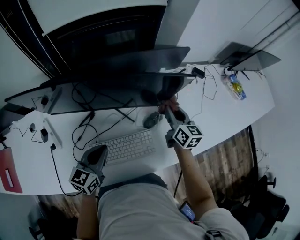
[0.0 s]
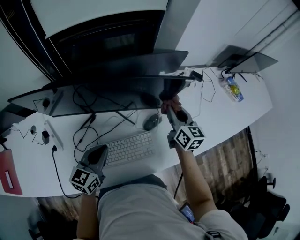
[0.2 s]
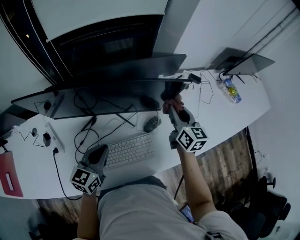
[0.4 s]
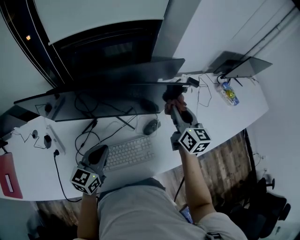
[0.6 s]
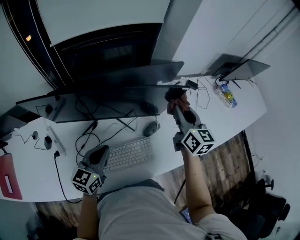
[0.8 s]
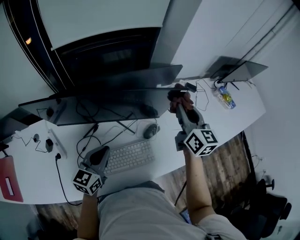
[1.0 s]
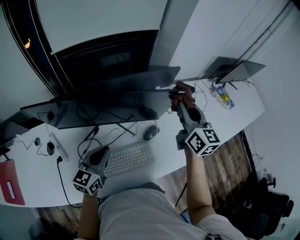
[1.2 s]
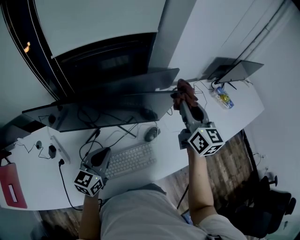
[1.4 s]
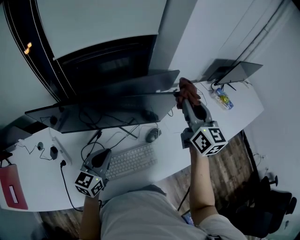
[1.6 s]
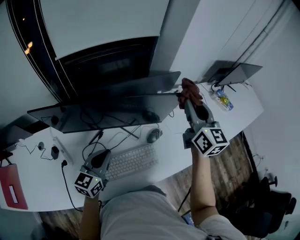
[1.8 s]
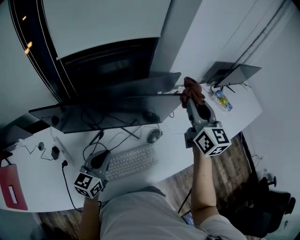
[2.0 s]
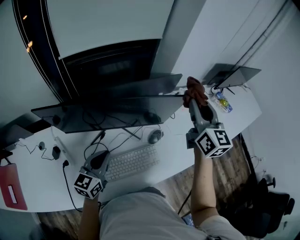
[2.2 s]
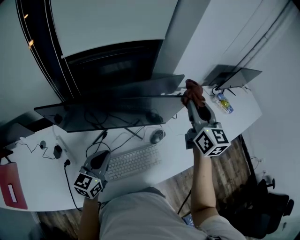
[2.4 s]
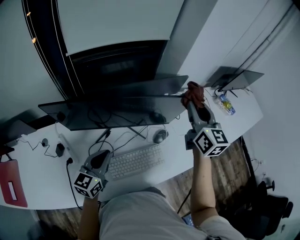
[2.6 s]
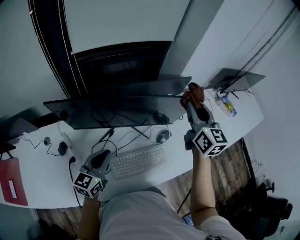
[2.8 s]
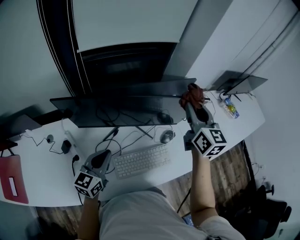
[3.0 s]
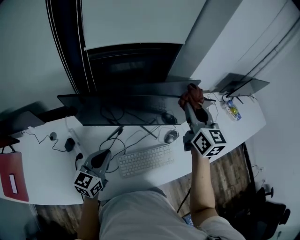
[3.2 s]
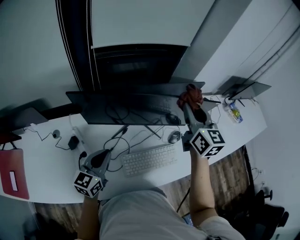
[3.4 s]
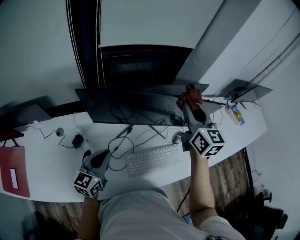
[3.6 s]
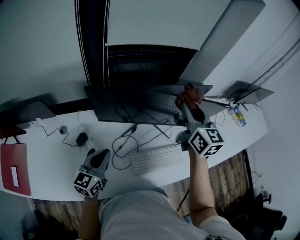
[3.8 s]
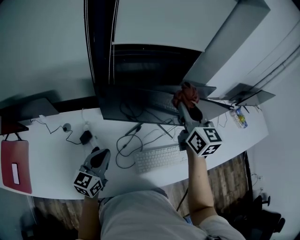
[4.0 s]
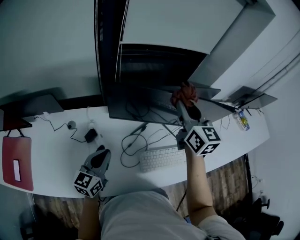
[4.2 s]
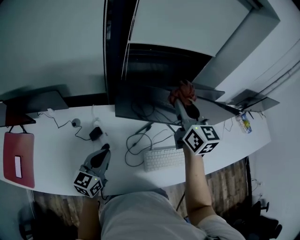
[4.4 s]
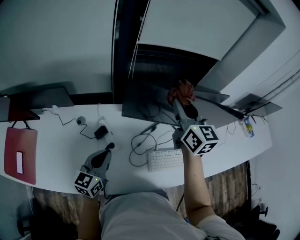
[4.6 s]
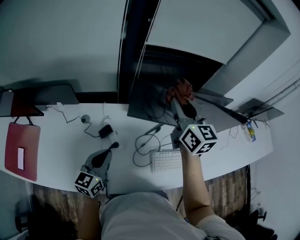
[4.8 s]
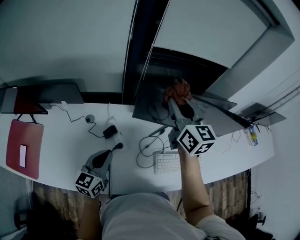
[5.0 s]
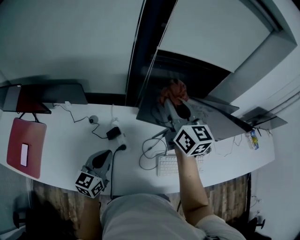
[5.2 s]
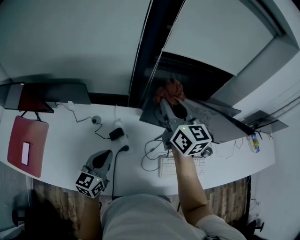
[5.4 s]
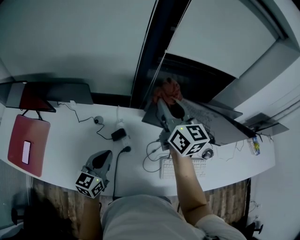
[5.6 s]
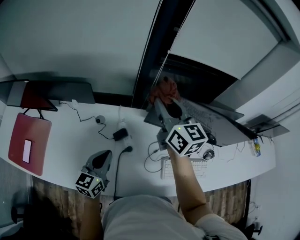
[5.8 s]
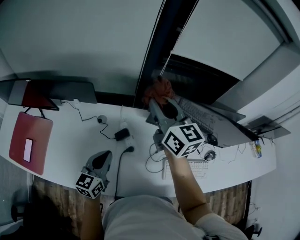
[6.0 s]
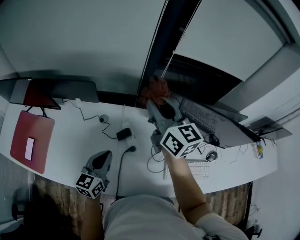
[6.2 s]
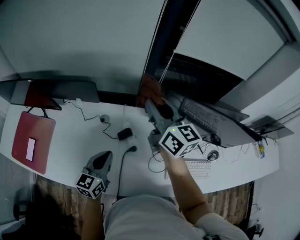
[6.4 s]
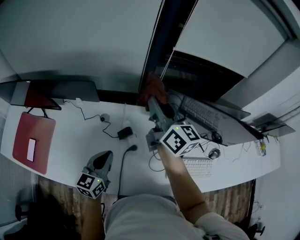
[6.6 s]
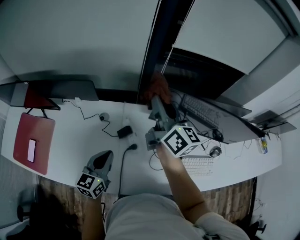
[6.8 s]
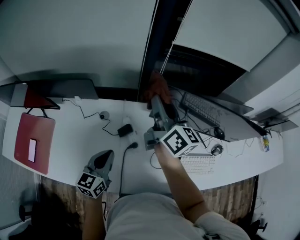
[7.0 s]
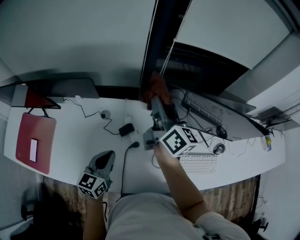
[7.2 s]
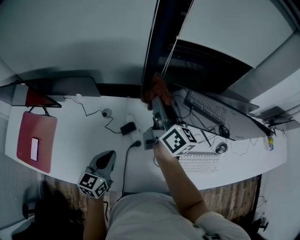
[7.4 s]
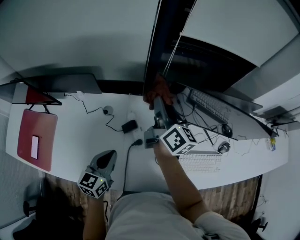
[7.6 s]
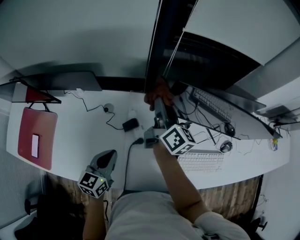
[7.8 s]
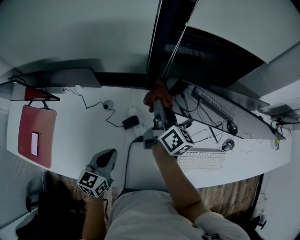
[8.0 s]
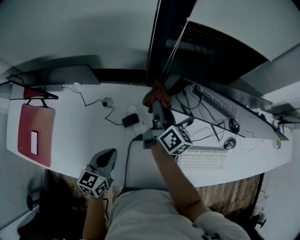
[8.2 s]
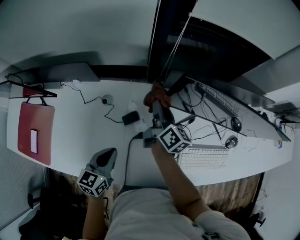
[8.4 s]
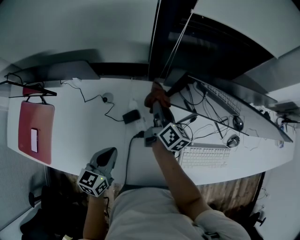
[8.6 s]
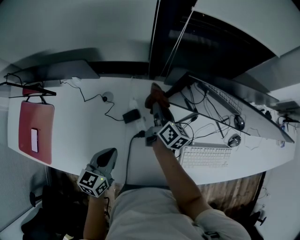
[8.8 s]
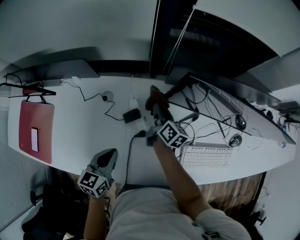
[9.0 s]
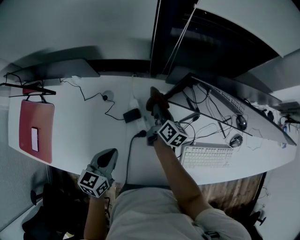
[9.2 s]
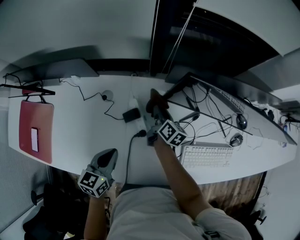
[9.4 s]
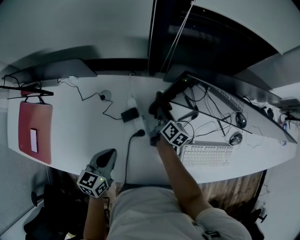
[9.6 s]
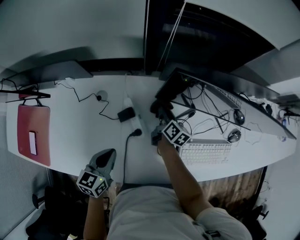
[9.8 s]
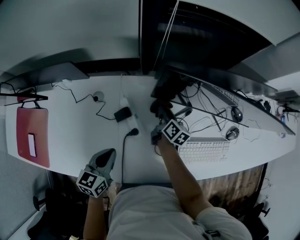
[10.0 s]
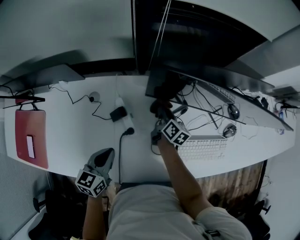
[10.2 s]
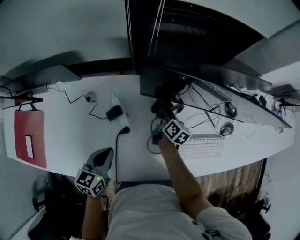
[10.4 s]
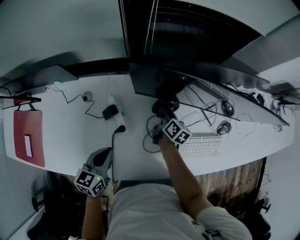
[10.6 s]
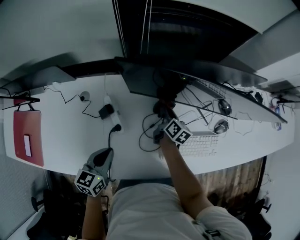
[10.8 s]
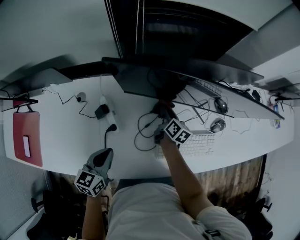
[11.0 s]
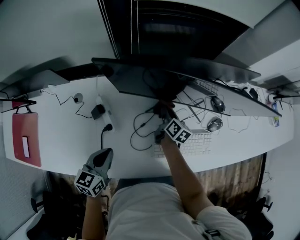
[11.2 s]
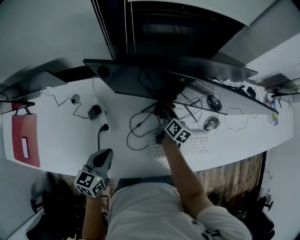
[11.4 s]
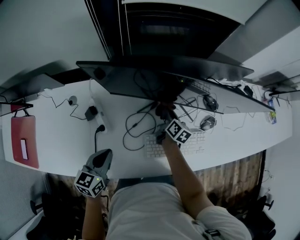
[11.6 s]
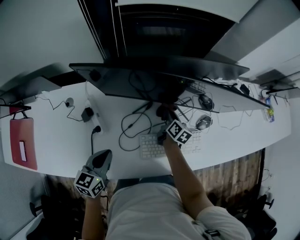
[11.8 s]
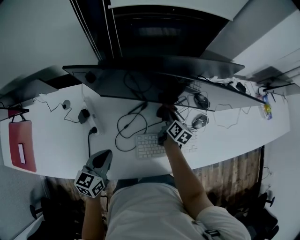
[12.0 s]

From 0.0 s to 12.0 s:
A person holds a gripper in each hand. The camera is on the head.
From 0.0 s to 1.6 s: The left gripper travels upward by approximately 10 cm, while the right gripper goes approximately 25 cm upward, and swivels approximately 20 degrees.
From 1.6 s to 3.0 s: Both grippers travel together to the left, roughly 10 cm.
From 3.0 s to 4.4 s: The left gripper heads to the left and backward, covering approximately 20 cm; the right gripper moves to the left, some 25 cm.
From 4.4 s to 6.0 s: The right gripper goes approximately 25 cm to the left, and swivels some 20 degrees, while the left gripper moves to the left, about 15 cm.
From 6.0 s to 7.6 s: The right gripper goes about 10 cm downward, and rotates about 30 degrees.
From 7.6 s to 9.0 s: The right gripper heads downward, covering some 25 cm, and turns by about 20 degrees; the left gripper travels downward by roughly 5 cm.
From 9.0 s to 10.4 s: The left gripper goes about 5 cm to the right. Meanwhile the right gripper travels to the right and downward by some 15 cm.
From 10.4 s to 12.0 s: The grippers both shift to the right by roughly 20 cm.

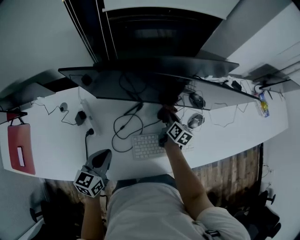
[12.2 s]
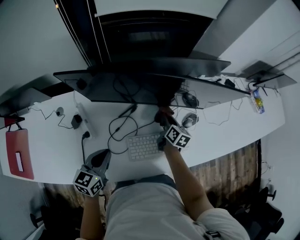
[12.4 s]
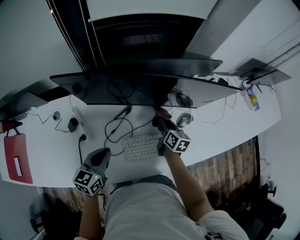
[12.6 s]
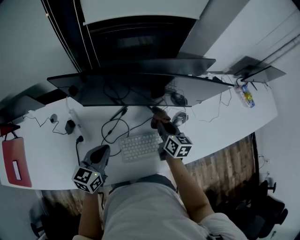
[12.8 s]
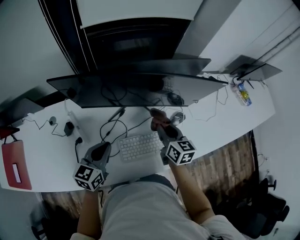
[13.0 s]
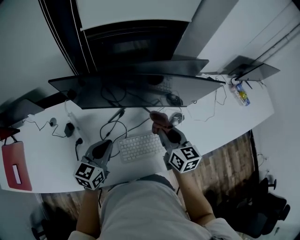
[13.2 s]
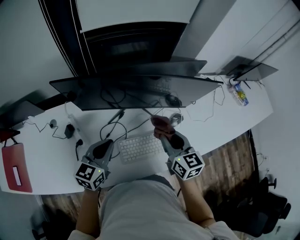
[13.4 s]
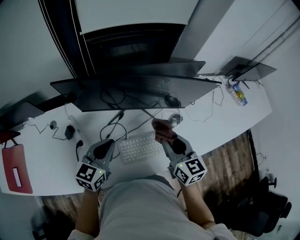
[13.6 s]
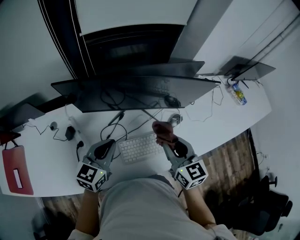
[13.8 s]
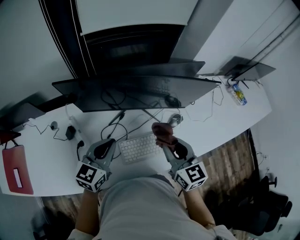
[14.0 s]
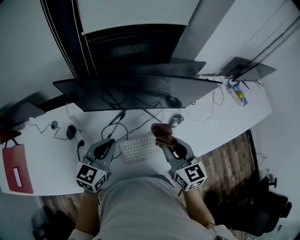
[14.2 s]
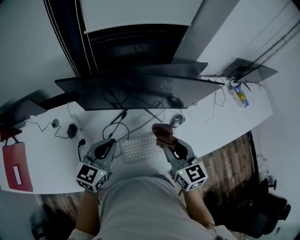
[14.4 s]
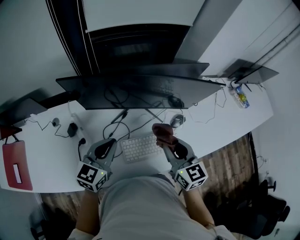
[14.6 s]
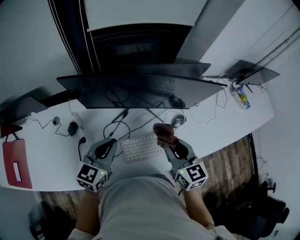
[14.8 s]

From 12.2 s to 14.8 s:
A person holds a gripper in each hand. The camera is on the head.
From 12.2 s to 13.4 s: The right gripper travels upward and backward by approximately 25 cm, and swivels roughly 30 degrees; the left gripper travels upward, to the right and forward by about 10 cm.
From 13.4 s to 14.8 s: There are only small adjustments of the grippers.

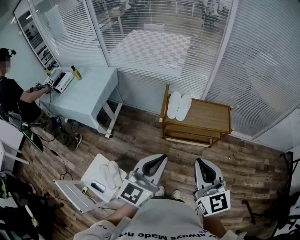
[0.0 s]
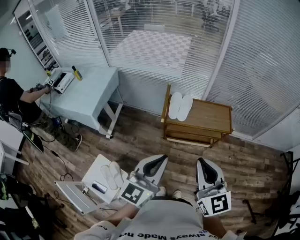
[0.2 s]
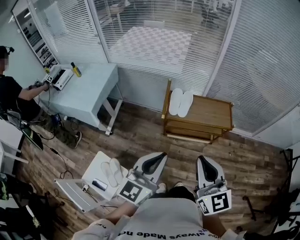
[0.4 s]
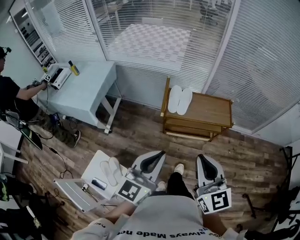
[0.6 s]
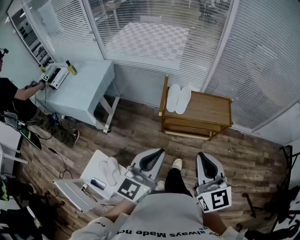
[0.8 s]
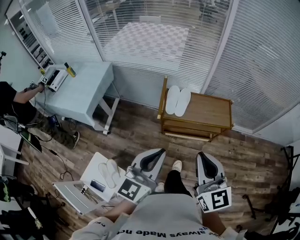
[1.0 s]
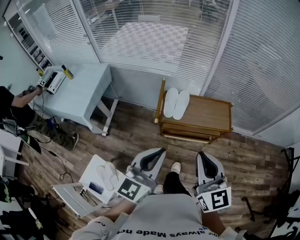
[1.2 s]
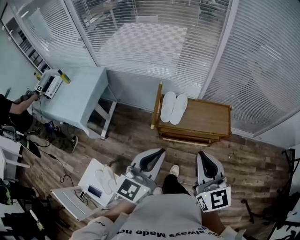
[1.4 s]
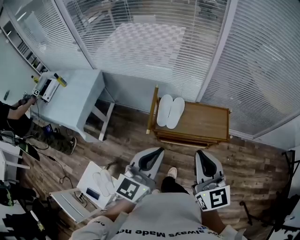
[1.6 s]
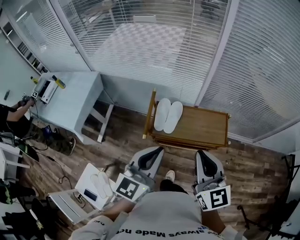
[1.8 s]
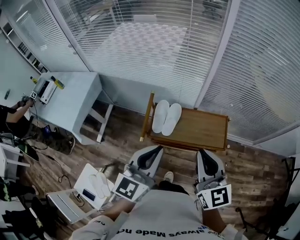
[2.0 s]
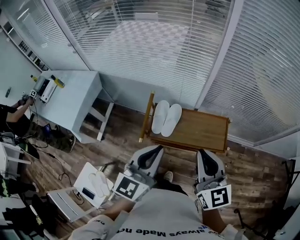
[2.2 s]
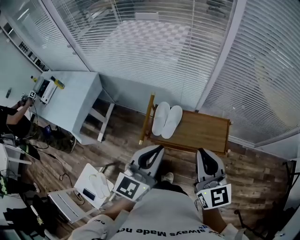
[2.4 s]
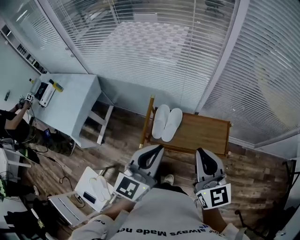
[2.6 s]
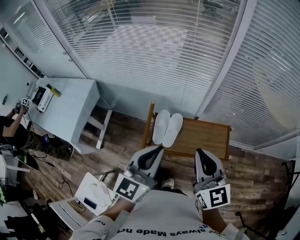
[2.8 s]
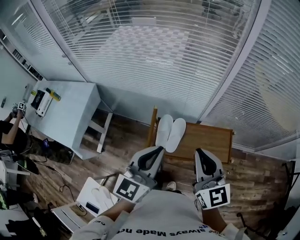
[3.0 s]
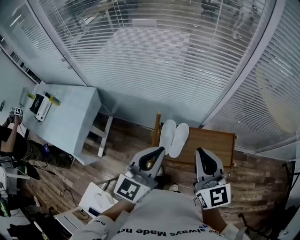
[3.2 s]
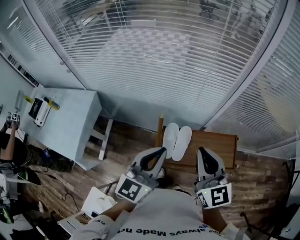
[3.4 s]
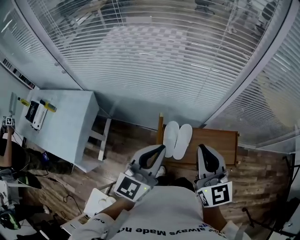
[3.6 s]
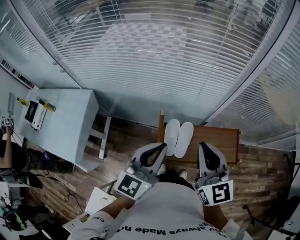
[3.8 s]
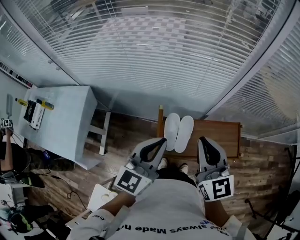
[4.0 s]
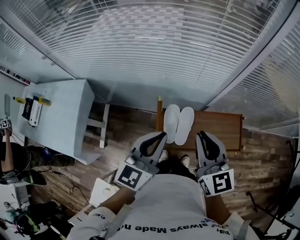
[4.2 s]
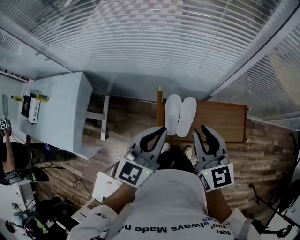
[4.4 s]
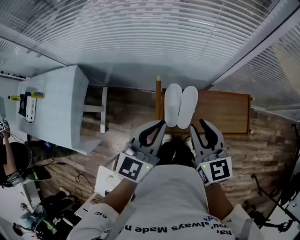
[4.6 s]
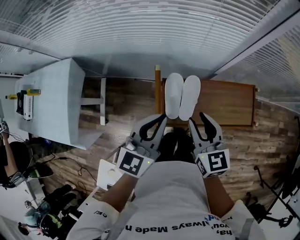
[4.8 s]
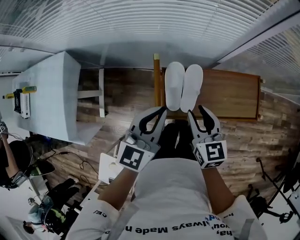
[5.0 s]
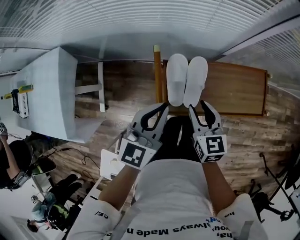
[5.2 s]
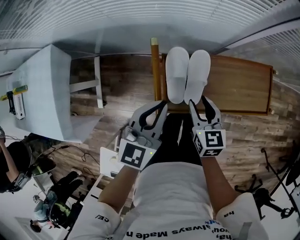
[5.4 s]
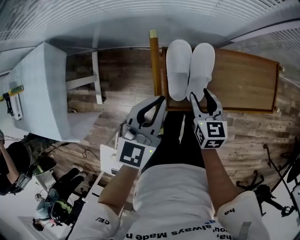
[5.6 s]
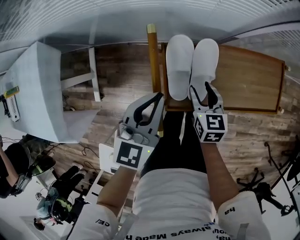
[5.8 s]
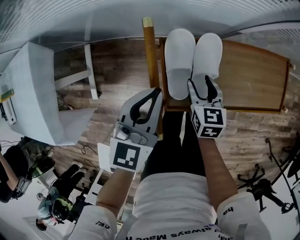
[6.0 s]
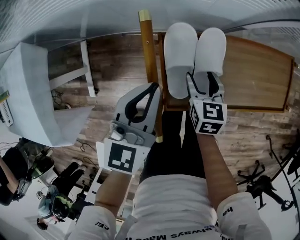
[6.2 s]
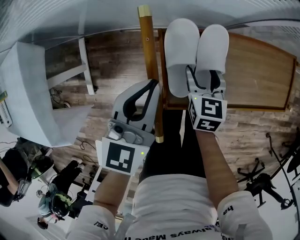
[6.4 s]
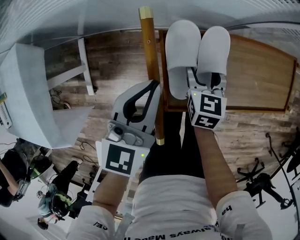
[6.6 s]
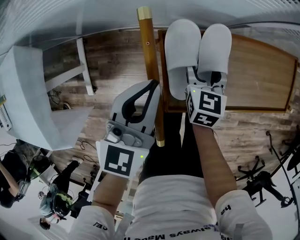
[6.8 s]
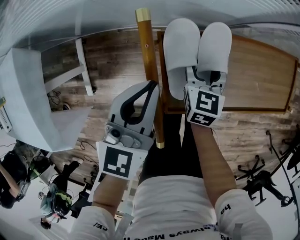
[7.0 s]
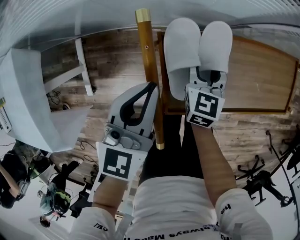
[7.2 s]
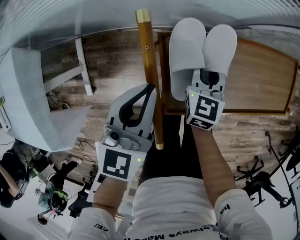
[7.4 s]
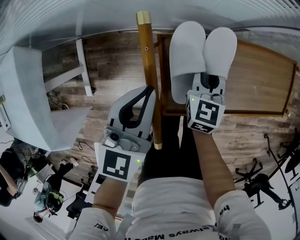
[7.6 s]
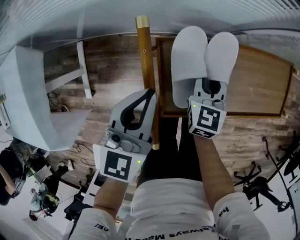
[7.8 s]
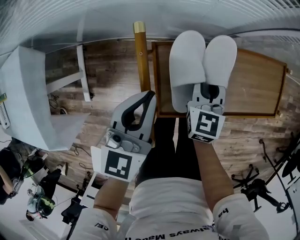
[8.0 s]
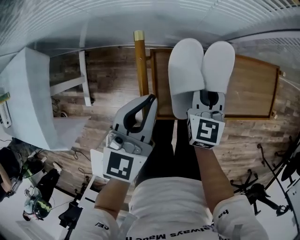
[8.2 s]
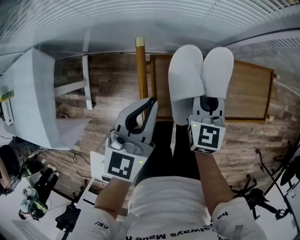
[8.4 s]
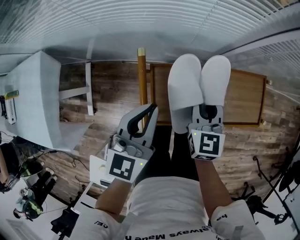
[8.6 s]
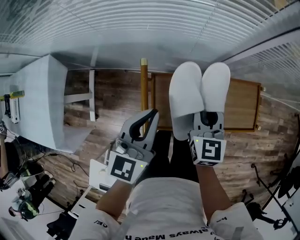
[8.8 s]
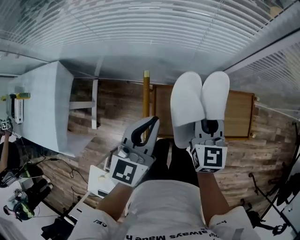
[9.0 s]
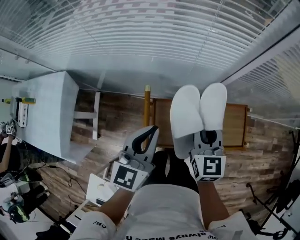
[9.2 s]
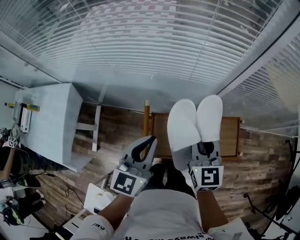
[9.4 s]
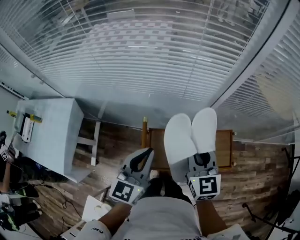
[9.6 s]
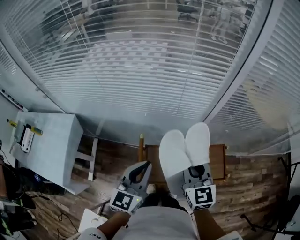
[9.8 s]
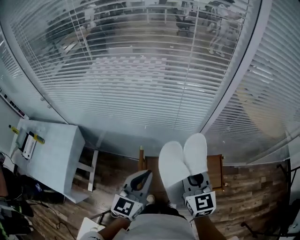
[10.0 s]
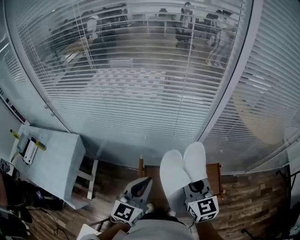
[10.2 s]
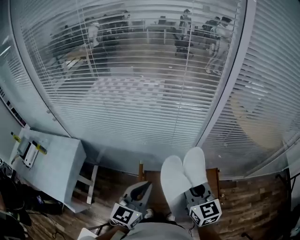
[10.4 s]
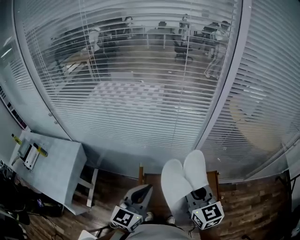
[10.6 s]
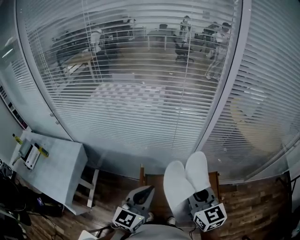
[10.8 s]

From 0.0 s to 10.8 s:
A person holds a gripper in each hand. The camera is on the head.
From 0.0 s to 1.6 s: Both grippers travel together forward, roughly 20 cm.
From 1.6 s to 3.0 s: Both grippers travel together forward, some 20 cm.
From 3.0 s to 4.6 s: Both grippers move downward, forward and to the left, approximately 20 cm.
From 4.6 s to 6.2 s: The right gripper moves downward, about 40 cm, turns by approximately 30 degrees, and opens up. Meanwhile the left gripper travels downward by some 25 cm.
From 6.2 s to 7.8 s: The right gripper shifts about 5 cm forward, and closes its fingers.
From 7.8 s to 9.2 s: Both grippers travel together upward, about 25 cm.
From 9.2 s to 10.8 s: Both grippers move upward and backward, about 20 cm.
